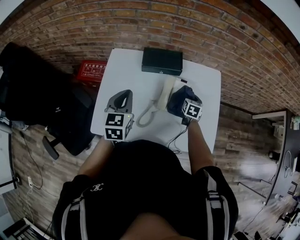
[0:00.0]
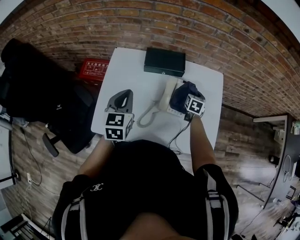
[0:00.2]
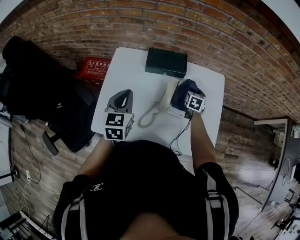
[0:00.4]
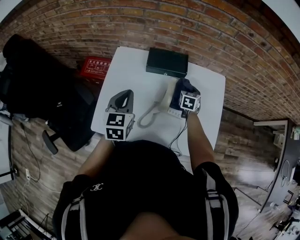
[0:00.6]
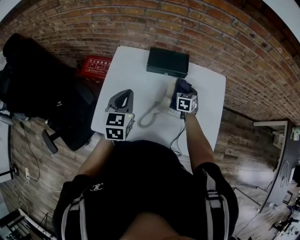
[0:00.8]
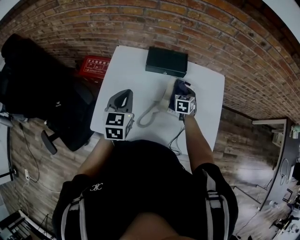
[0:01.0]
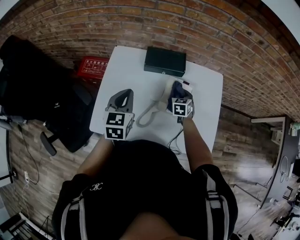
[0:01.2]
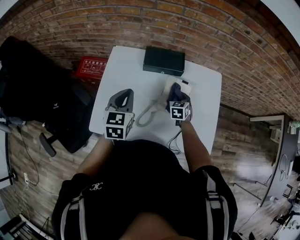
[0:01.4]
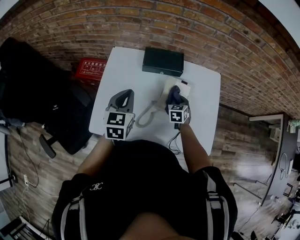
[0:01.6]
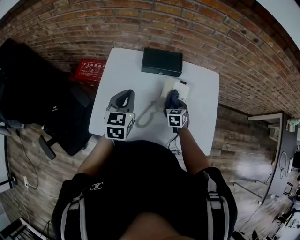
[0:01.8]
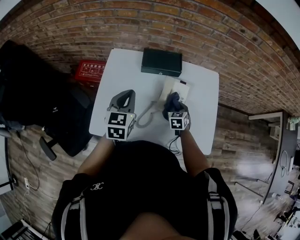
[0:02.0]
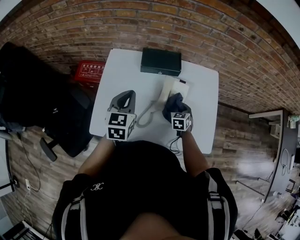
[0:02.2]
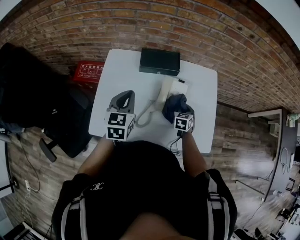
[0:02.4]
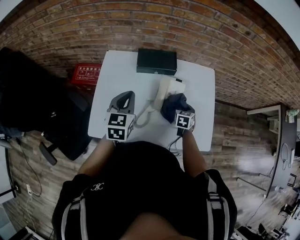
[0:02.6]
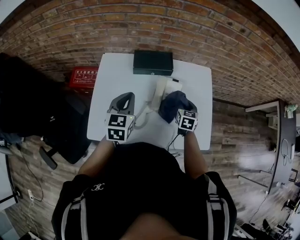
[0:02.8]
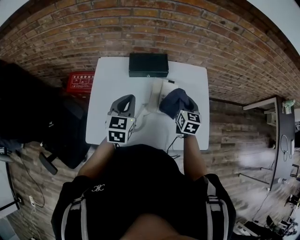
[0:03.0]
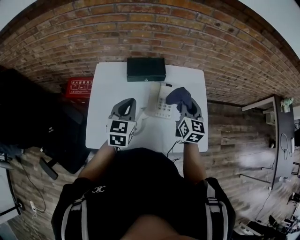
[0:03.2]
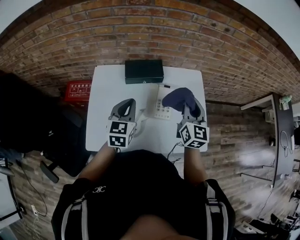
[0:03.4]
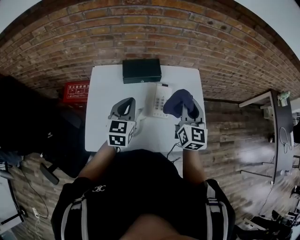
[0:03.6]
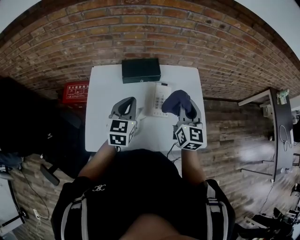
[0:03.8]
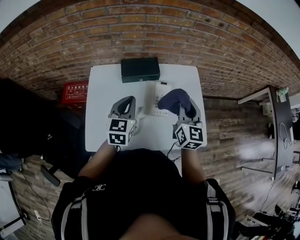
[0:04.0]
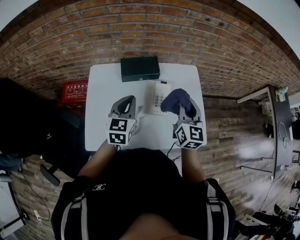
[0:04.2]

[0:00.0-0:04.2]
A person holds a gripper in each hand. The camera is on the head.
0:00.0 to 0:01.4: The right gripper travels to the left by about 10 cm, and changes its angle by roughly 20 degrees.
0:01.4 to 0:02.8: The right gripper heads to the right and upward, covering roughly 10 cm.
0:02.8 to 0:04.2: The right gripper shifts roughly 20 cm upward, and angles its fingers upward, by some 30 degrees.

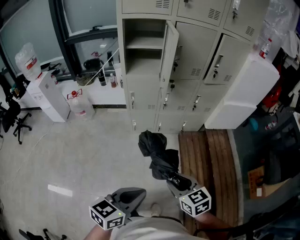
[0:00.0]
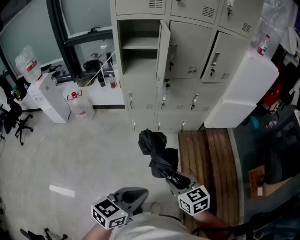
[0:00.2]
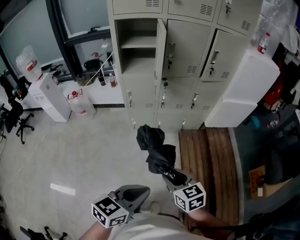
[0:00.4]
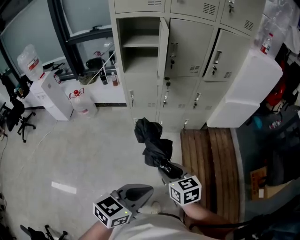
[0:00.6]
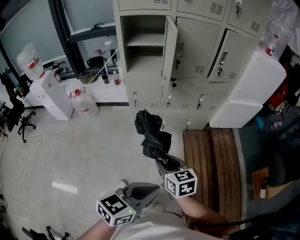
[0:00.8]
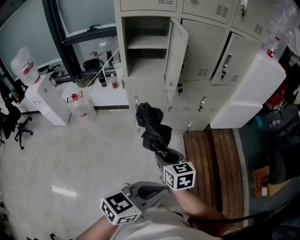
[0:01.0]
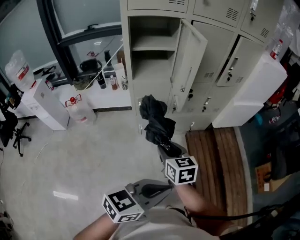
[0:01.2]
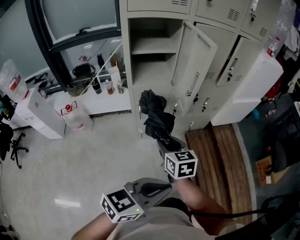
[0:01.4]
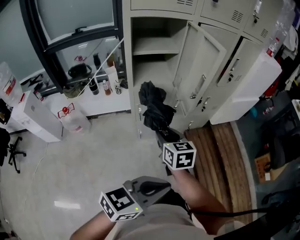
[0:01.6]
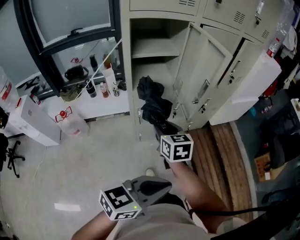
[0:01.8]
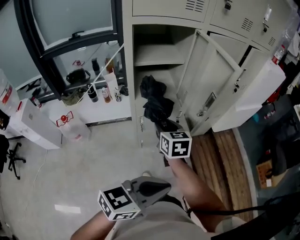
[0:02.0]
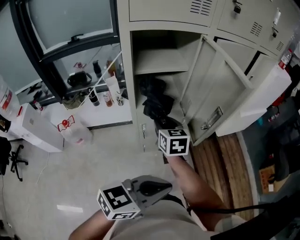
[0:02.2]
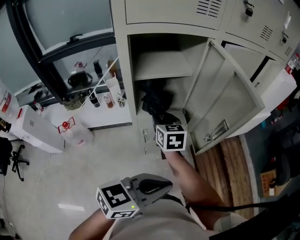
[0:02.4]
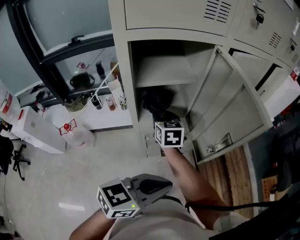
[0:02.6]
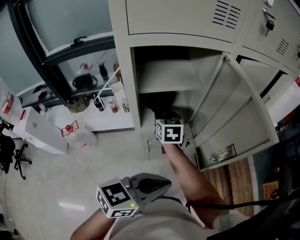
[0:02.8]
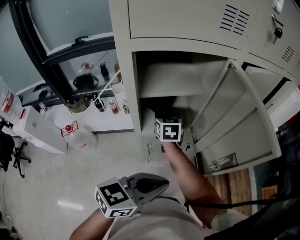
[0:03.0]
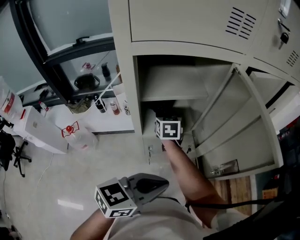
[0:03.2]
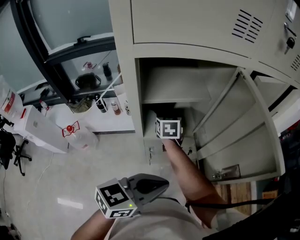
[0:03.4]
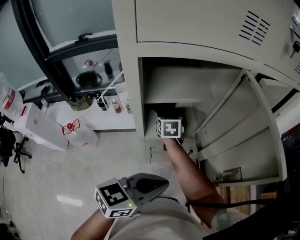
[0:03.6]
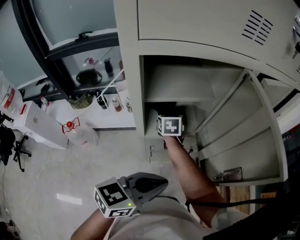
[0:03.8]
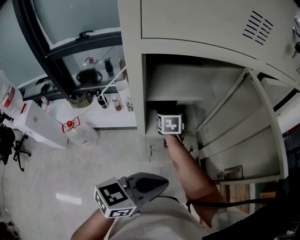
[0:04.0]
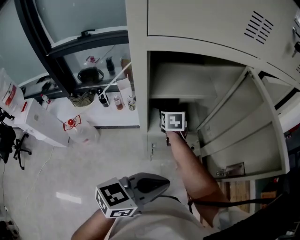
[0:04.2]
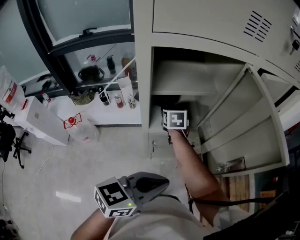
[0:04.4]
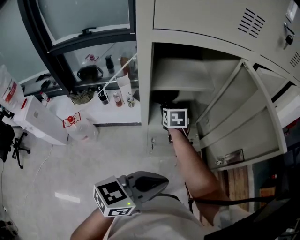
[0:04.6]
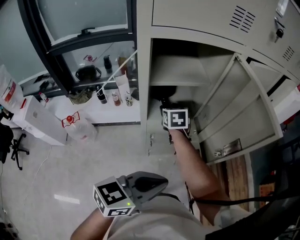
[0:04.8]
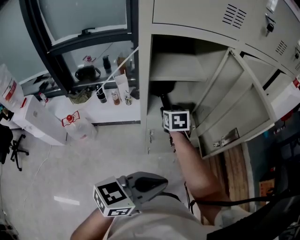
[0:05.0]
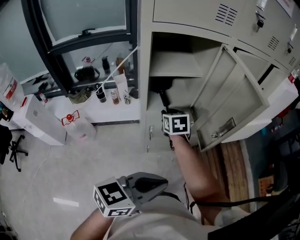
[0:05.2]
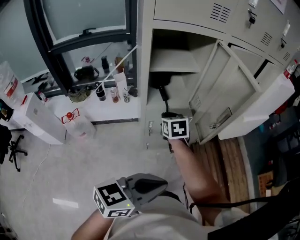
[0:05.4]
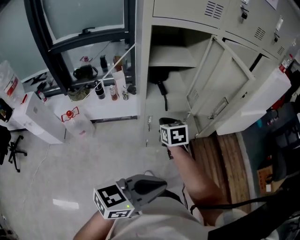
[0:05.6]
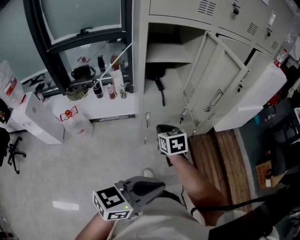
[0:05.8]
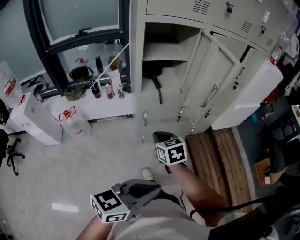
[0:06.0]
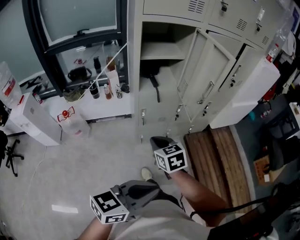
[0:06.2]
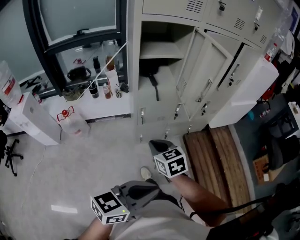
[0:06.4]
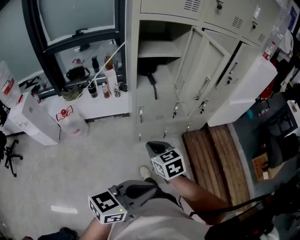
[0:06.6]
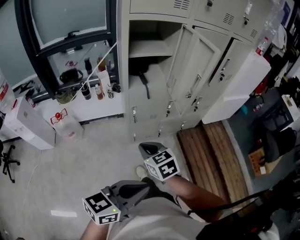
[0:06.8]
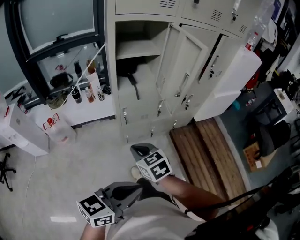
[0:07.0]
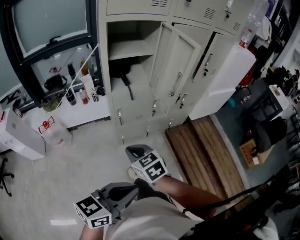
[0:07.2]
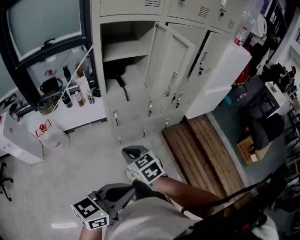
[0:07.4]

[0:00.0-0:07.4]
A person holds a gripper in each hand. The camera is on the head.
0:00.0 to 0:01.4: The left gripper heads forward, to the left and upward, covering roughly 20 cm, and changes its angle by approximately 30 degrees. The right gripper is displaced forward and to the left by roughly 35 cm, and rotates approximately 20 degrees.
0:01.4 to 0:03.0: The grippers both shift forward and to the left by some 40 cm.
0:03.0 to 0:04.4: The right gripper is displaced downward by some 5 cm.
0:04.4 to 0:06.0: The left gripper is displaced backward by some 25 cm. Meanwhile the right gripper goes approximately 40 cm backward and to the right, and closes its fingers.
0:06.0 to 0:07.4: The right gripper shifts approximately 10 cm backward.

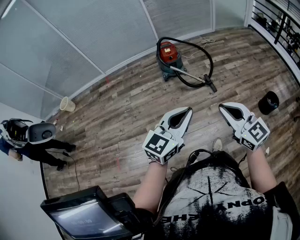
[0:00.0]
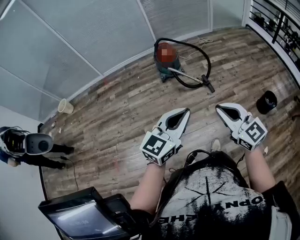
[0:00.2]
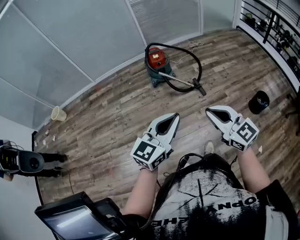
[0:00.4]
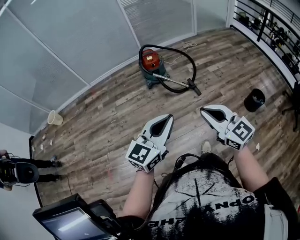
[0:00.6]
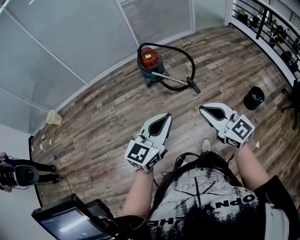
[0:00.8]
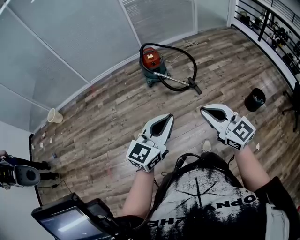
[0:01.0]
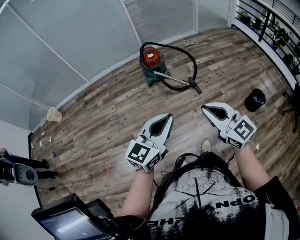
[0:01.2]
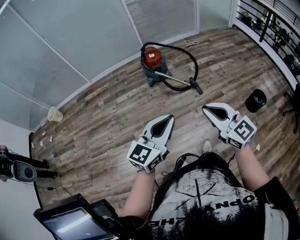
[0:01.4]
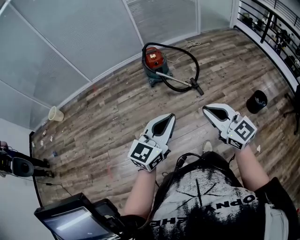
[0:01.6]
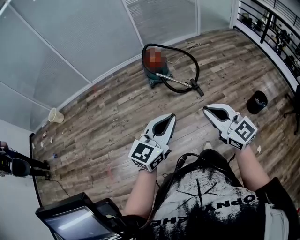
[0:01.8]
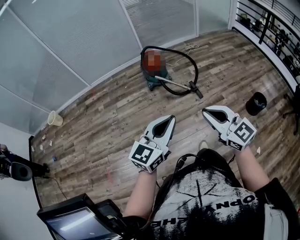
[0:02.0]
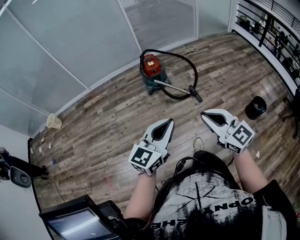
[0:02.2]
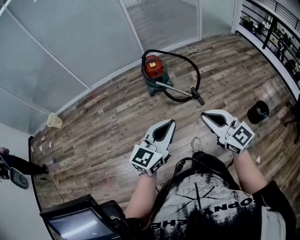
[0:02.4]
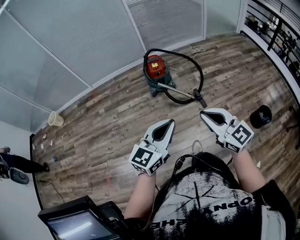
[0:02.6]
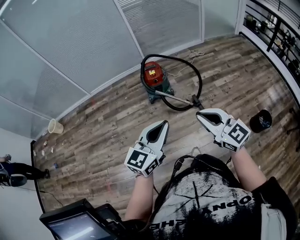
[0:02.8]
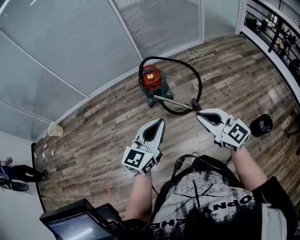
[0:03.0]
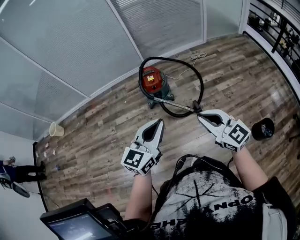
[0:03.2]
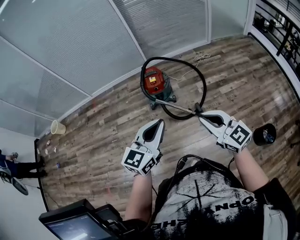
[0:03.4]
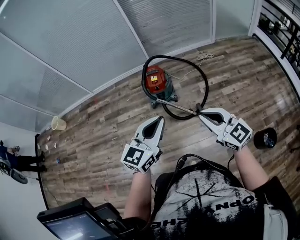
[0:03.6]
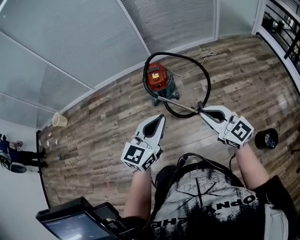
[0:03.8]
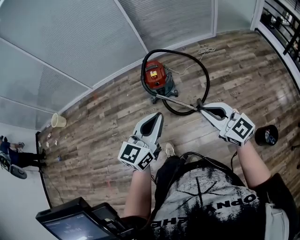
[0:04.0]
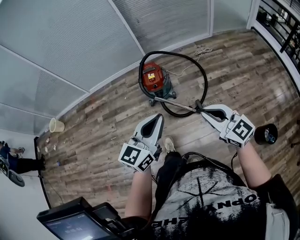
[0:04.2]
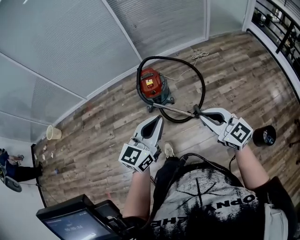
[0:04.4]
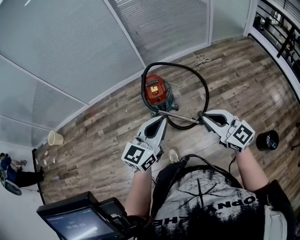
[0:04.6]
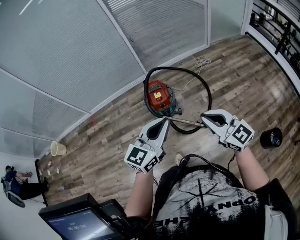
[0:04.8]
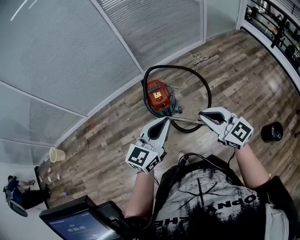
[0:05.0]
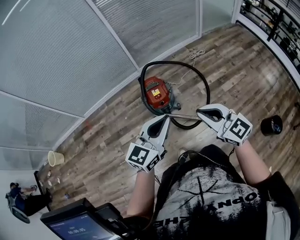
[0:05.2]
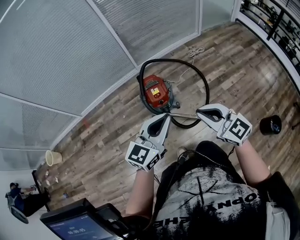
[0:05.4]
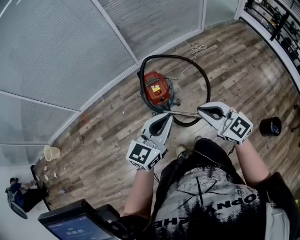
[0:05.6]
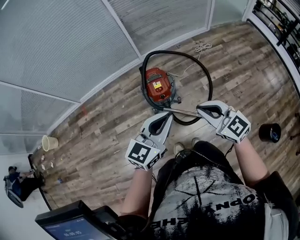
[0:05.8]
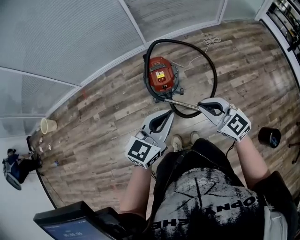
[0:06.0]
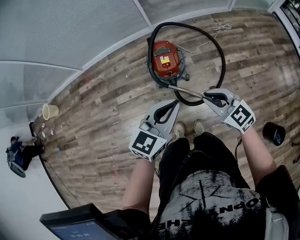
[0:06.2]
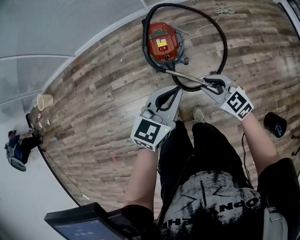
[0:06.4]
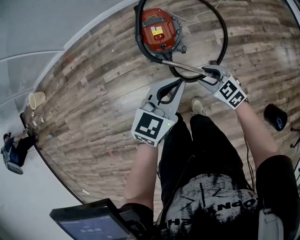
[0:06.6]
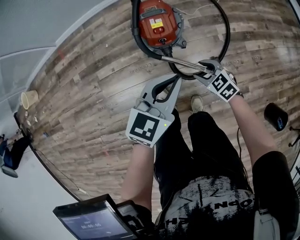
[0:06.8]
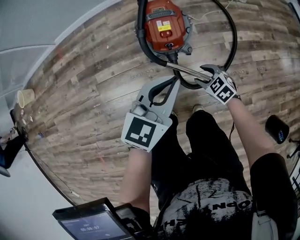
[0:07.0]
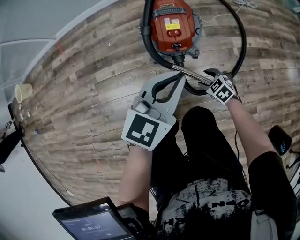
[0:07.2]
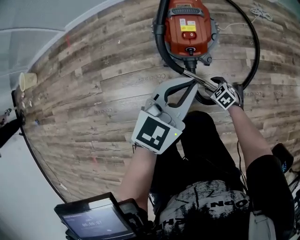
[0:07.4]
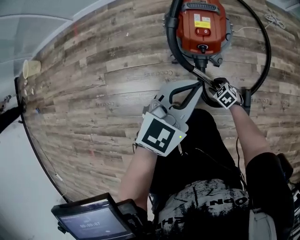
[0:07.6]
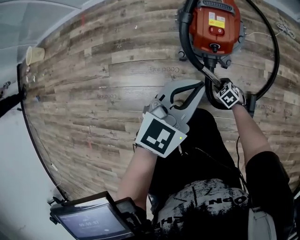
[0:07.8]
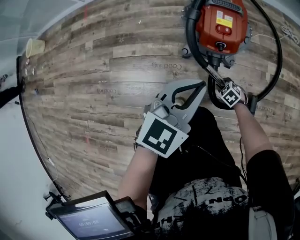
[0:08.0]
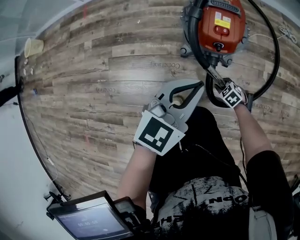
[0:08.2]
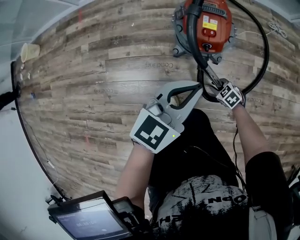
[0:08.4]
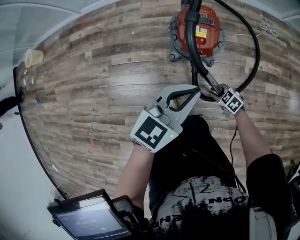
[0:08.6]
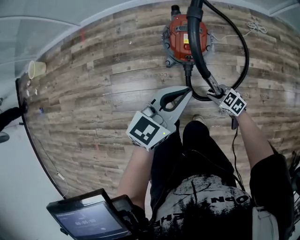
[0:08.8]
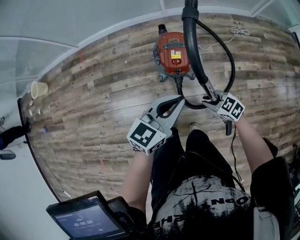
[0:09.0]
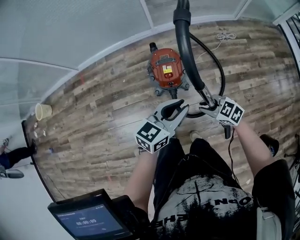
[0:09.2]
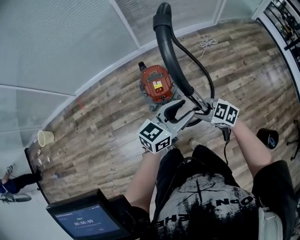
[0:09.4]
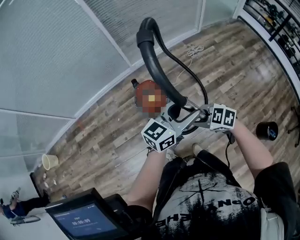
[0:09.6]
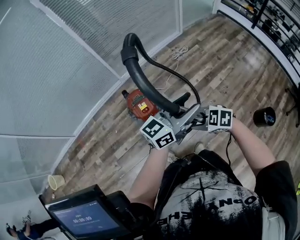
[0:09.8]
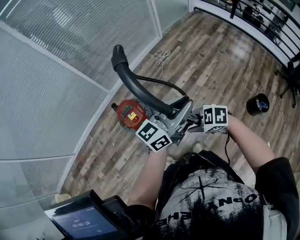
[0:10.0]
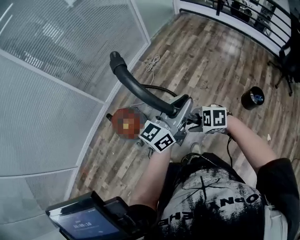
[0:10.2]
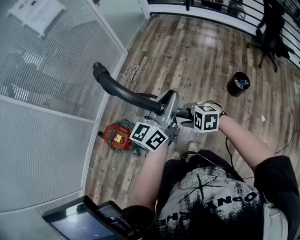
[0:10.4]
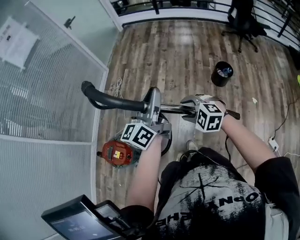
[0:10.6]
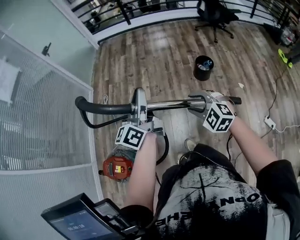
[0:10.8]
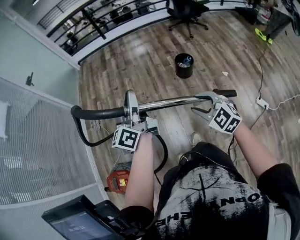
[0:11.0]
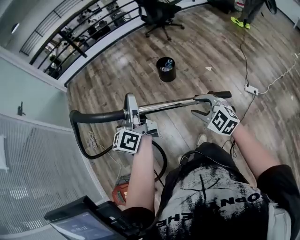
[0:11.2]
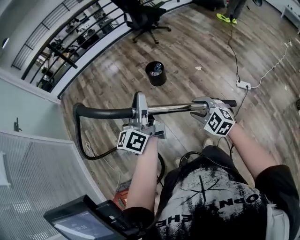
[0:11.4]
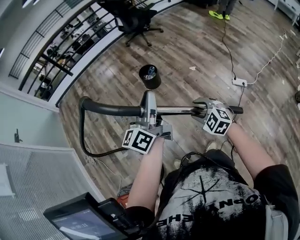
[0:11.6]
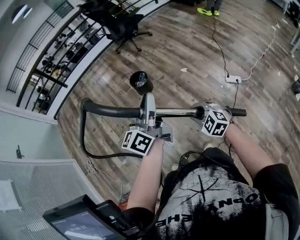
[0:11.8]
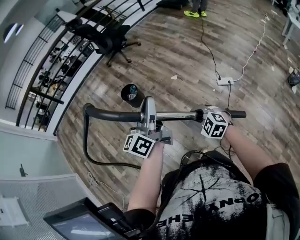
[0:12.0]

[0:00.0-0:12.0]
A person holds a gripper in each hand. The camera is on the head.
0:00.0 to 0:01.6: There are only small adjustments of the grippers.
0:01.6 to 0:03.0: The two grippers go about 30 cm forward.
0:03.0 to 0:04.4: Both grippers travel together forward, approximately 20 cm.
0:04.4 to 0:06.0: Both grippers move forward and to the left, some 25 cm.
0:06.0 to 0:07.6: The left gripper heads downward, covering approximately 40 cm. Meanwhile the right gripper travels downward by about 70 cm, tilts its fingers approximately 40 degrees downward, and opens its fingers.
0:07.6 to 0:09.0: The left gripper moves upward, roughly 25 cm, and swivels approximately 20 degrees, while the right gripper goes roughly 40 cm upward, changes its angle by roughly 20 degrees, and closes its fingers.
0:09.0 to 0:10.4: The left gripper moves about 40 cm, rotates approximately 50 degrees, and opens, then closes once more; the right gripper ends up about 35 cm from where it was, and rotates roughly 40 degrees.
0:10.4 to 0:12.0: The two grippers travel together, about 60 cm. The right gripper turns by approximately 90 degrees, and opens and closes again. The left gripper changes its angle by about 60 degrees.
